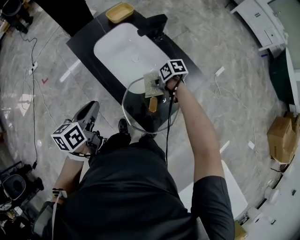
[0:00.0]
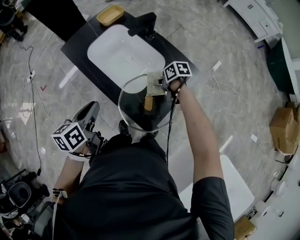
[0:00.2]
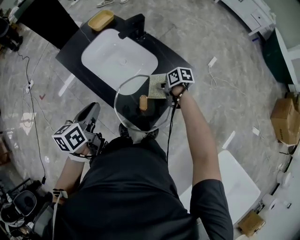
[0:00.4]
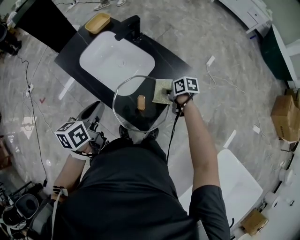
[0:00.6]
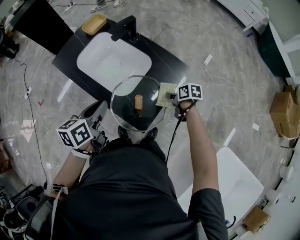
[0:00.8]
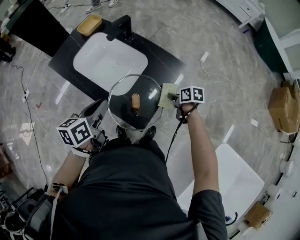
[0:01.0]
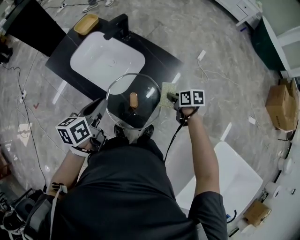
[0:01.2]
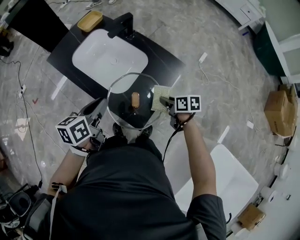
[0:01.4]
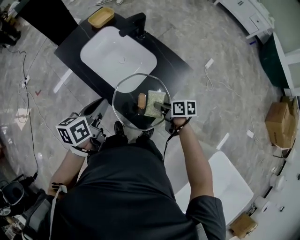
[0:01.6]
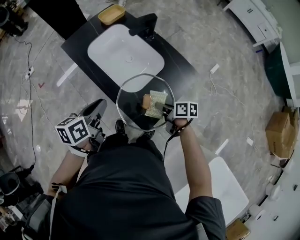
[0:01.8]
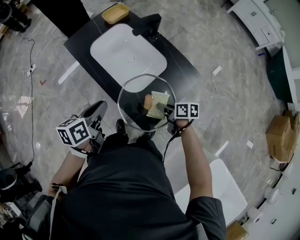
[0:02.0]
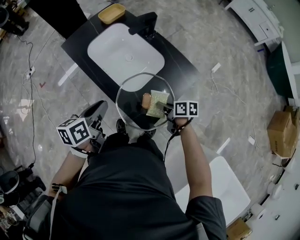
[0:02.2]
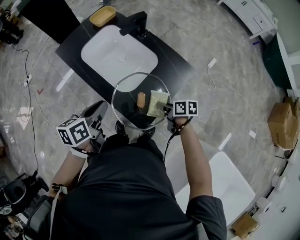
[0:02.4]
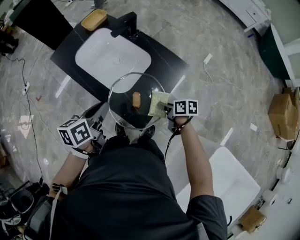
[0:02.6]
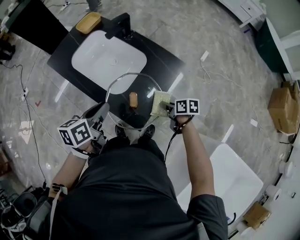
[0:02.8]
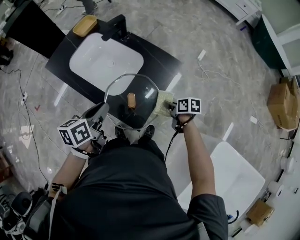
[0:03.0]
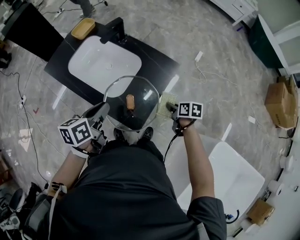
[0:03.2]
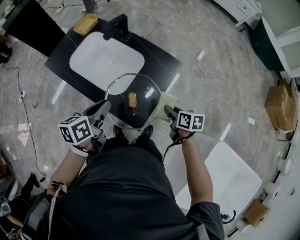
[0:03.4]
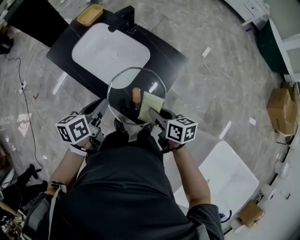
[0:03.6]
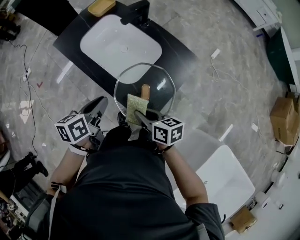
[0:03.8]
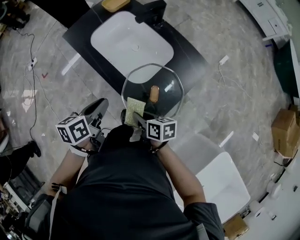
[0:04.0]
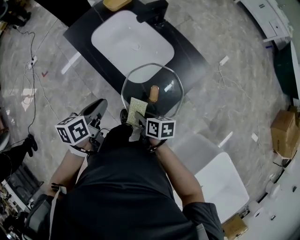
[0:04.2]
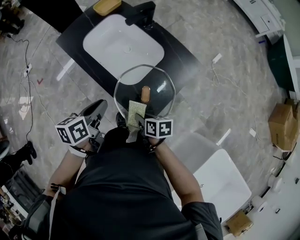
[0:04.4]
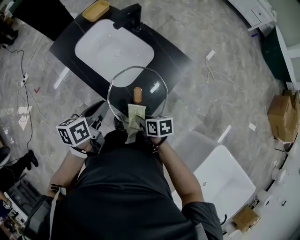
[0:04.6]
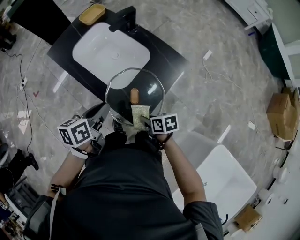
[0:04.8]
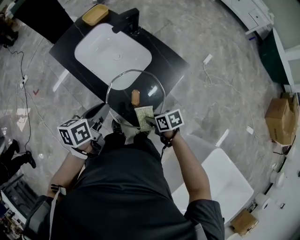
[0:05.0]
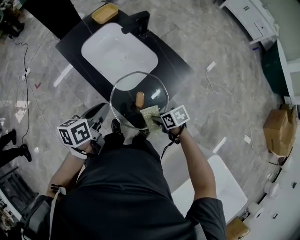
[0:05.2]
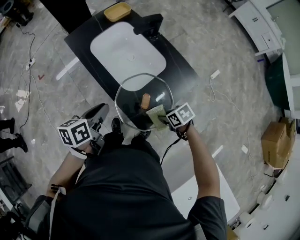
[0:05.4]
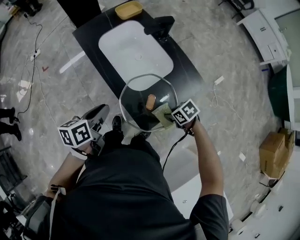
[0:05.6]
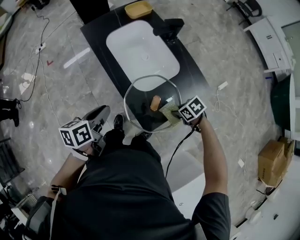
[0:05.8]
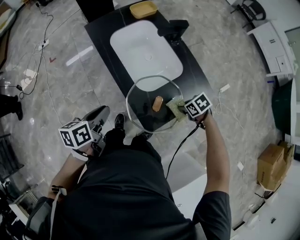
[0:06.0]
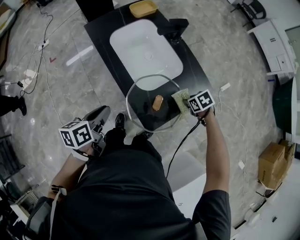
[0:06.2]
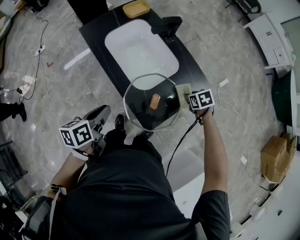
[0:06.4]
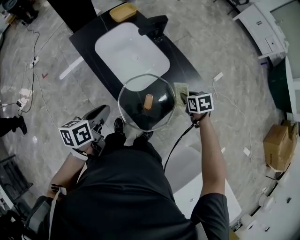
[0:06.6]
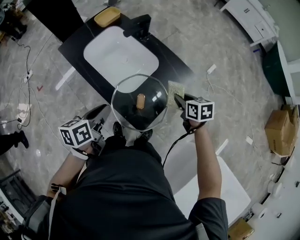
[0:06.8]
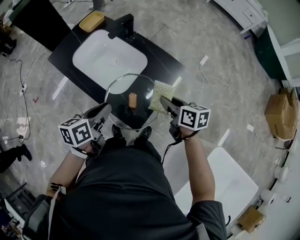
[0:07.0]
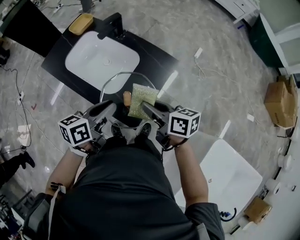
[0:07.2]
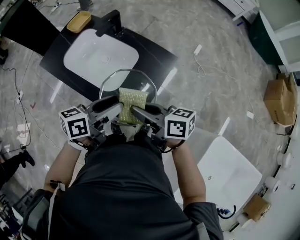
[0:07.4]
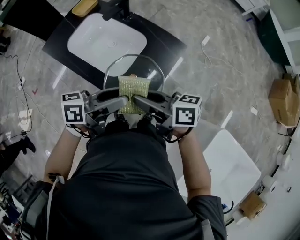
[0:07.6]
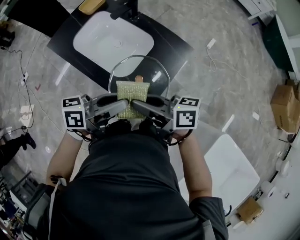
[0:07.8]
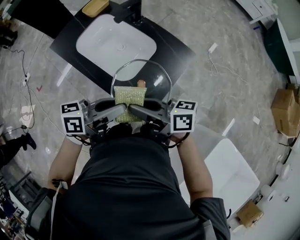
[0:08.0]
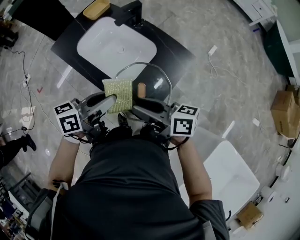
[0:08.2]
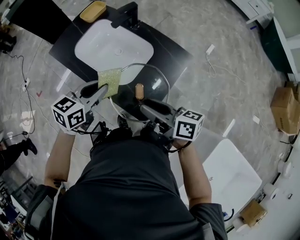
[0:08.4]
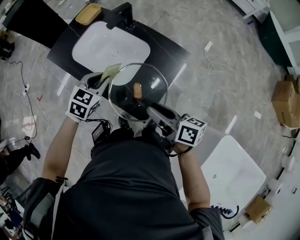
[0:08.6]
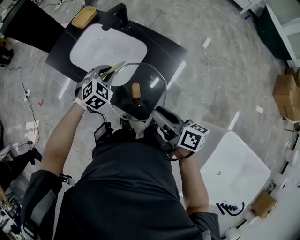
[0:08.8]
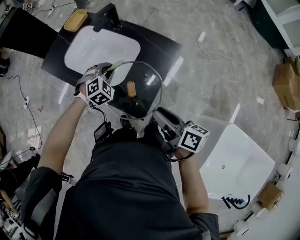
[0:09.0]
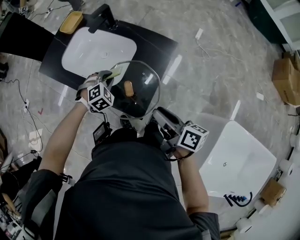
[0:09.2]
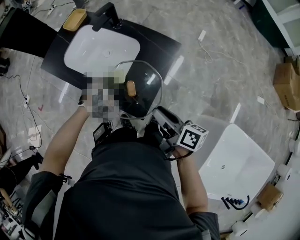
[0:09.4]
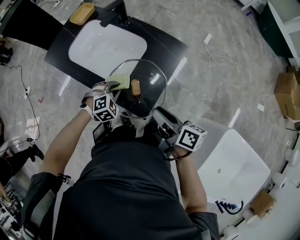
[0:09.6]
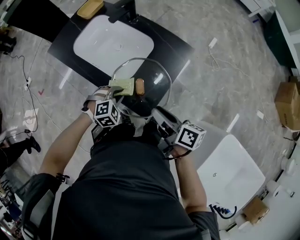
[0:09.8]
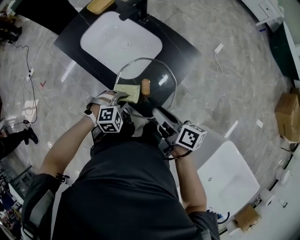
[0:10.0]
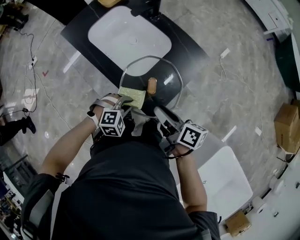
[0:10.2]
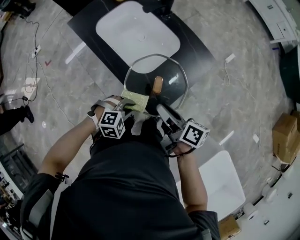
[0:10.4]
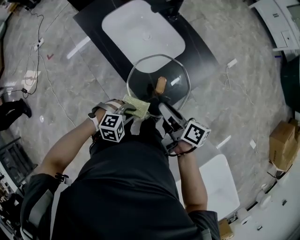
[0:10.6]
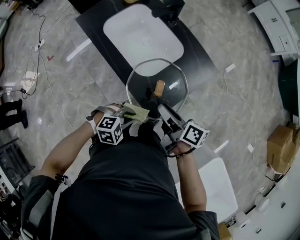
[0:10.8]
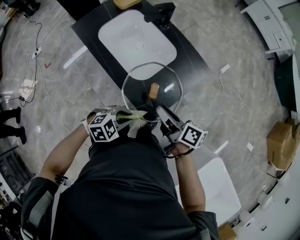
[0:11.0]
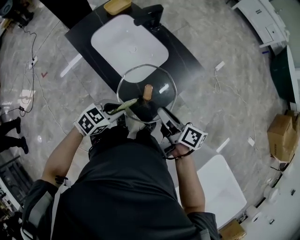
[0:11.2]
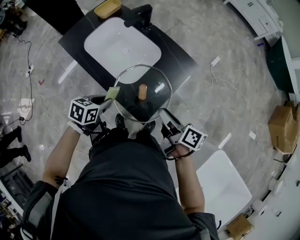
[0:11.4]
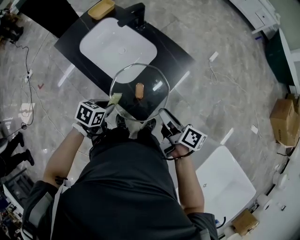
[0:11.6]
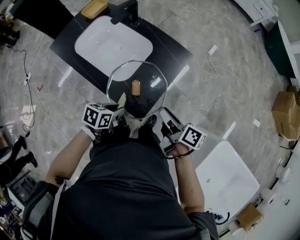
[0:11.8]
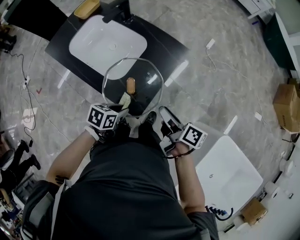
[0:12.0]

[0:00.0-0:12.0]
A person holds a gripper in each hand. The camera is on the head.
0:00.0 to 0:01.6: The left gripper moves approximately 10 cm. The right gripper ends up some 15 cm from where it was, and turns by roughly 30 degrees.
0:01.6 to 0:03.0: The right gripper goes approximately 10 cm to the right.
0:03.0 to 0:04.4: The left gripper shifts approximately 5 cm to the left. Meanwhile the right gripper heads to the left, covering about 20 cm.
0:04.4 to 0:06.0: The right gripper ends up some 20 cm from where it was, and turns by roughly 60 degrees. Meanwhile the left gripper shifts by some 5 cm.
0:06.0 to 0:07.6: The right gripper goes about 25 cm upward, and points its fingers about 60 degrees further upward. Meanwhile the left gripper shifts by roughly 20 cm, angles its fingers upward, by roughly 30 degrees, and opens.
0:07.6 to 0:09.0: The left gripper goes approximately 20 cm downward, tilts its fingers some 50 degrees downward, and closes; the right gripper moves some 10 cm, and rotates approximately 30 degrees.
0:09.0 to 0:10.4: The right gripper goes approximately 10 cm to the left. Meanwhile the left gripper goes approximately 25 cm backward, and changes its angle by about 20 degrees.
0:10.4 to 0:12.0: The left gripper twists some 60 degrees counterclockwise, seen from behind. The right gripper changes place by approximately 10 cm.

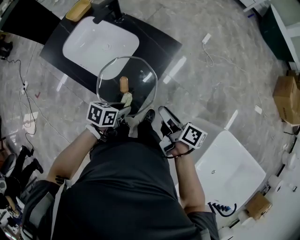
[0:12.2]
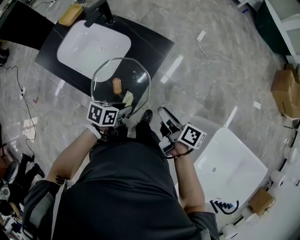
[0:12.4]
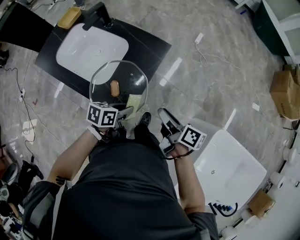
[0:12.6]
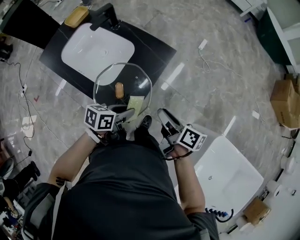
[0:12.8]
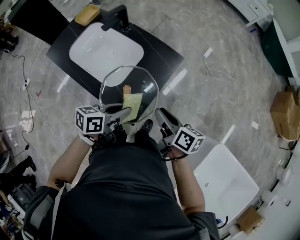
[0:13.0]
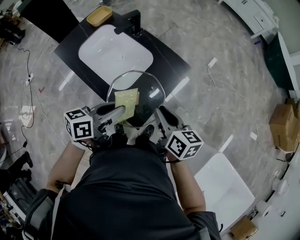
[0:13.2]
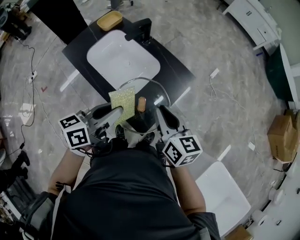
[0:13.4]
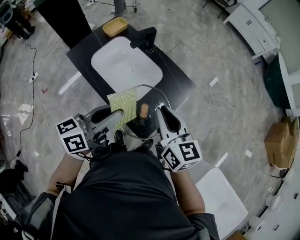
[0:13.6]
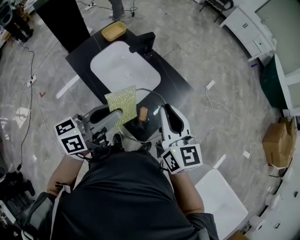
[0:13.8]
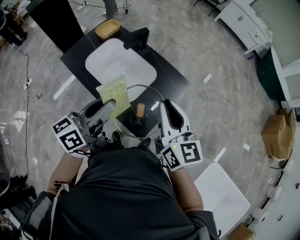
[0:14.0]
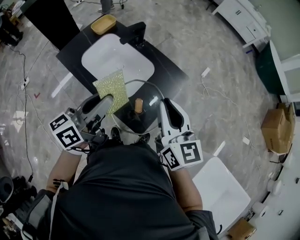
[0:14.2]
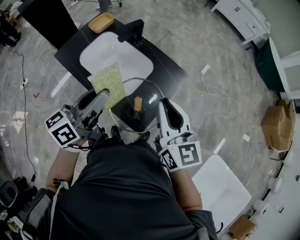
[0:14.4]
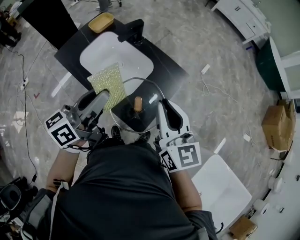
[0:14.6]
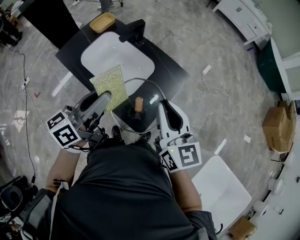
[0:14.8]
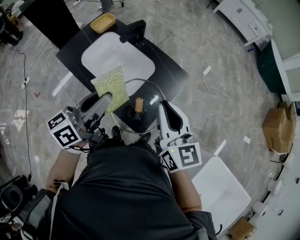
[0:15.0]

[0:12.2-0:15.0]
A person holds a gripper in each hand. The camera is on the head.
0:12.2 to 0:13.6: Both grippers move upward and to the left, approximately 25 cm. The left gripper points its fingers approximately 40 degrees further upward. The right gripper rotates around the line of its fingers by roughly 60 degrees, counterclockwise from behind.
0:13.6 to 0:15.0: The grippers make only small movements.

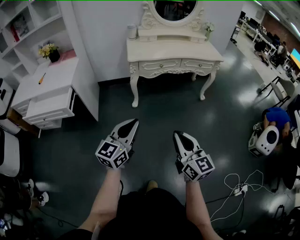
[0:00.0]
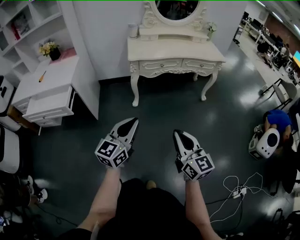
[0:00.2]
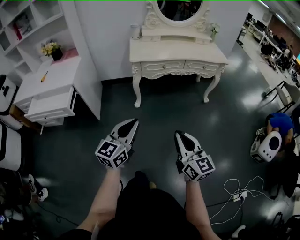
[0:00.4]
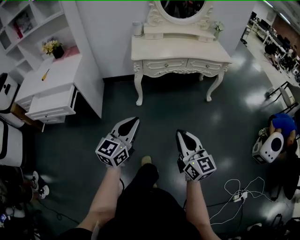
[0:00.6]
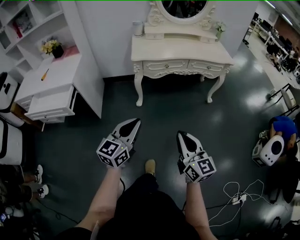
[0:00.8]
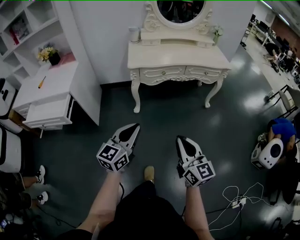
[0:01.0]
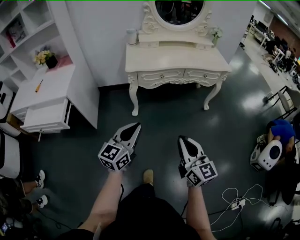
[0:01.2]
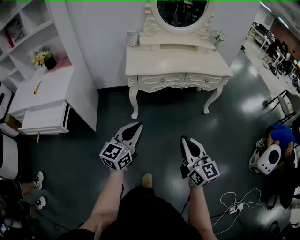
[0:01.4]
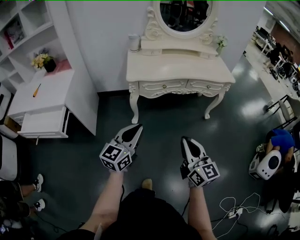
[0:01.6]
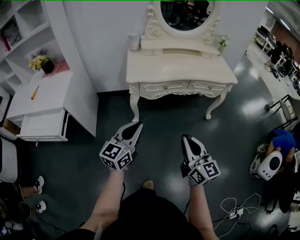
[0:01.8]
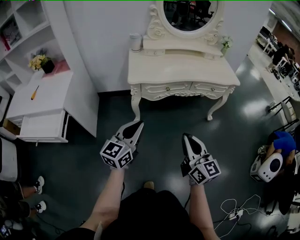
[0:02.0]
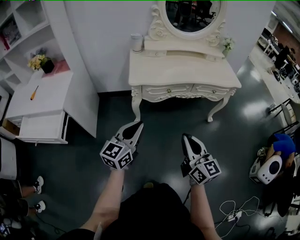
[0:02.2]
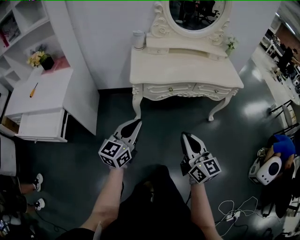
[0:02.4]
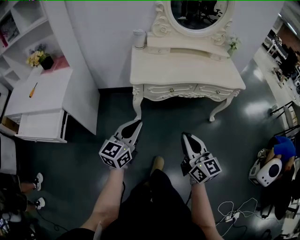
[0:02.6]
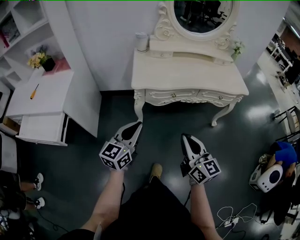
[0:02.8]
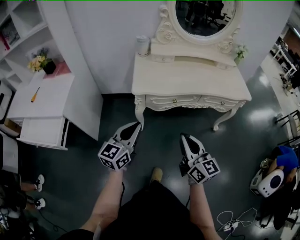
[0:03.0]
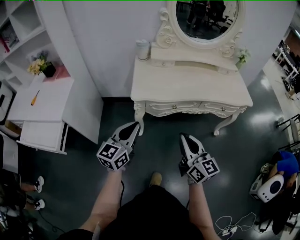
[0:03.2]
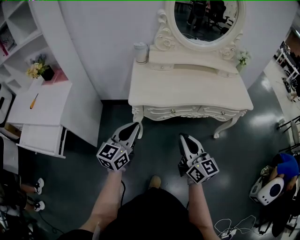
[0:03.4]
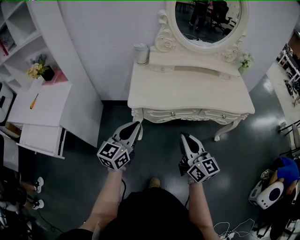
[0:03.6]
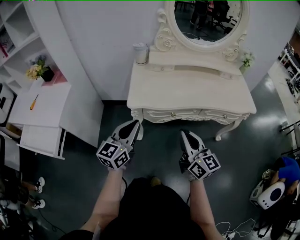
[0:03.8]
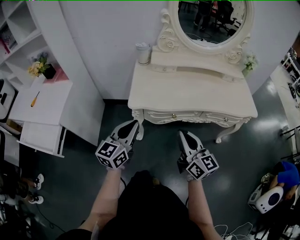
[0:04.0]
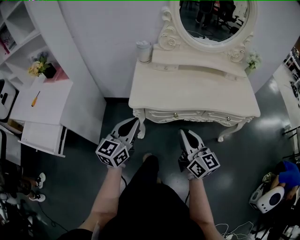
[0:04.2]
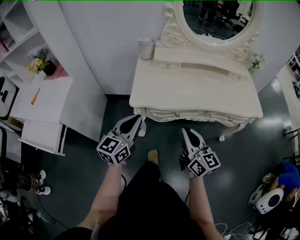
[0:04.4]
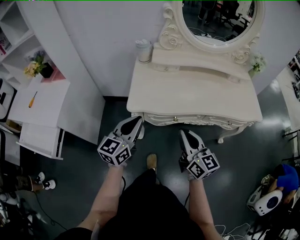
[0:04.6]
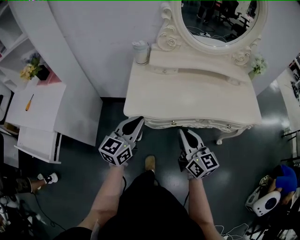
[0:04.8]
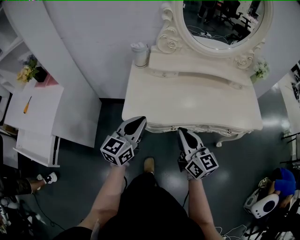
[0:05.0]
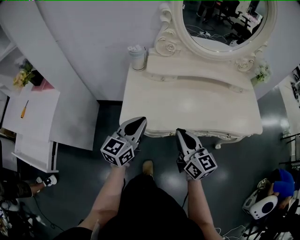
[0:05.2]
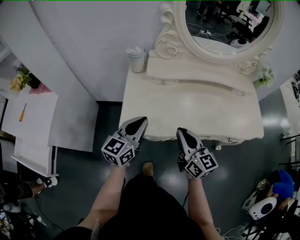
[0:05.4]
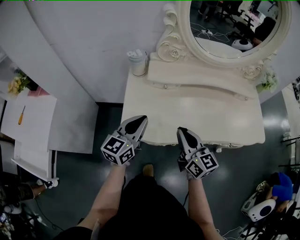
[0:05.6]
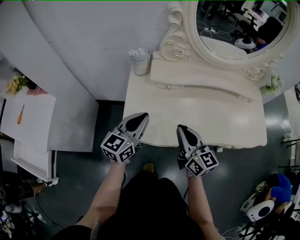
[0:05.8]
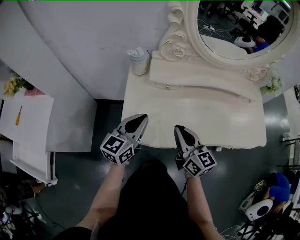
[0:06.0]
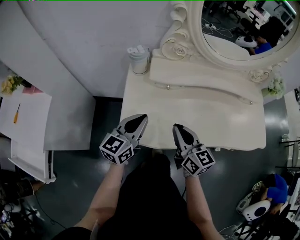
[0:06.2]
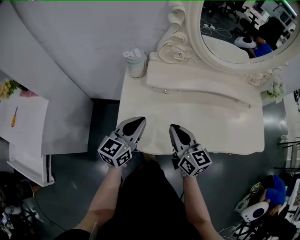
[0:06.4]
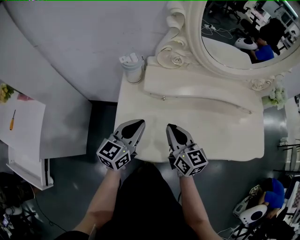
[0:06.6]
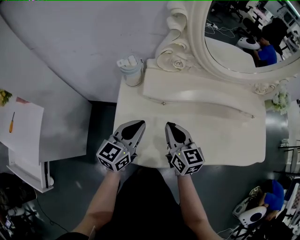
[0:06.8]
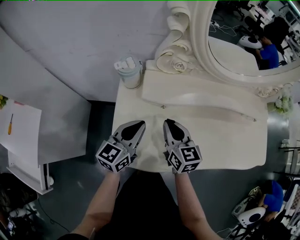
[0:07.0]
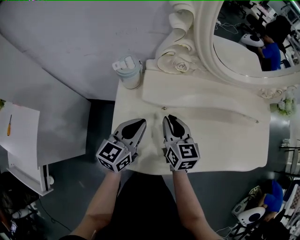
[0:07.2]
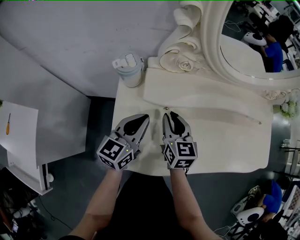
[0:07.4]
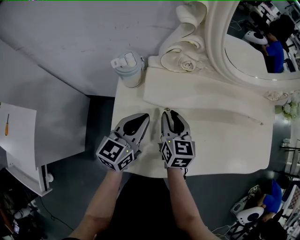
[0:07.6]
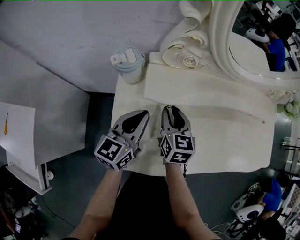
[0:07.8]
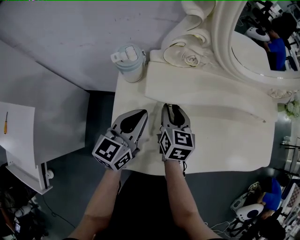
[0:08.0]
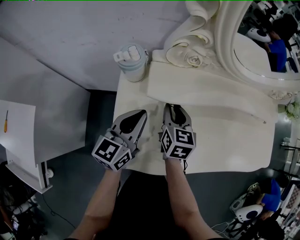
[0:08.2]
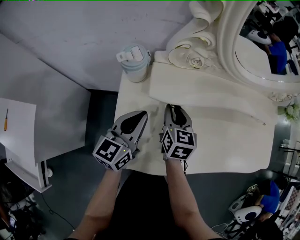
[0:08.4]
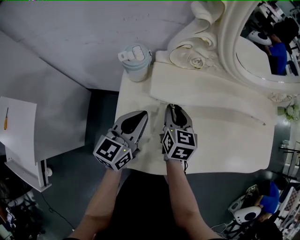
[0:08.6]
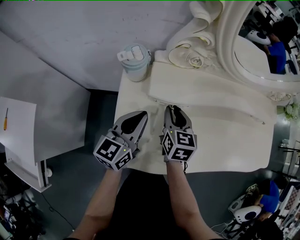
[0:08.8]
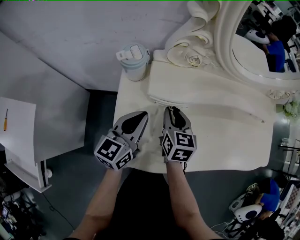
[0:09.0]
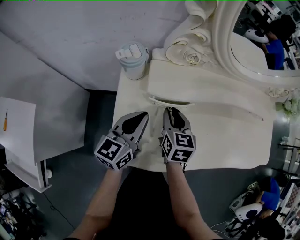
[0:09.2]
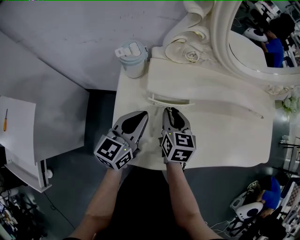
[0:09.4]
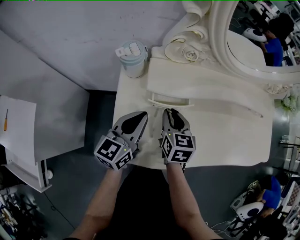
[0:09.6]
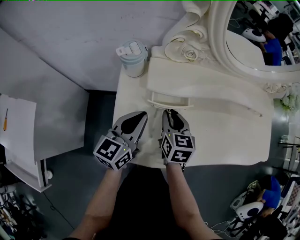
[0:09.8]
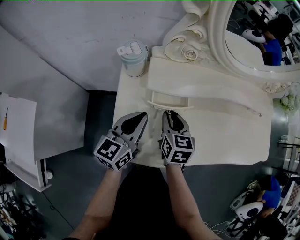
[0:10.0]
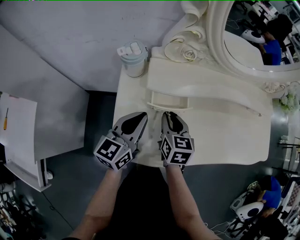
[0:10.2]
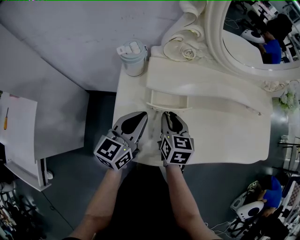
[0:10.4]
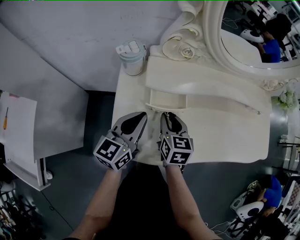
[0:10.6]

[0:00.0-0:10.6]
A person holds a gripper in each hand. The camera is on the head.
0:00.0 to 0:01.6: The two grippers go about 25 cm forward.
0:01.6 to 0:03.0: Both grippers move forward, some 20 cm.
0:03.0 to 0:04.6: Both grippers travel together forward, roughly 20 cm.
0:04.6 to 0:06.0: Both grippers move forward, about 25 cm.
0:06.0 to 0:07.6: The right gripper is displaced forward and downward by roughly 25 cm, swivels some 20 degrees, and opens up. Meanwhile the left gripper heads forward, covering about 15 cm.
0:07.6 to 0:09.0: The grippers make only small movements.
0:09.0 to 0:10.6: The right gripper moves backward, some 5 cm.
